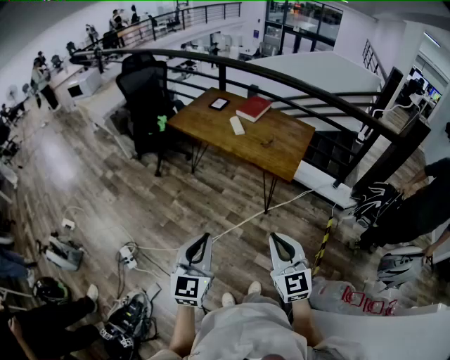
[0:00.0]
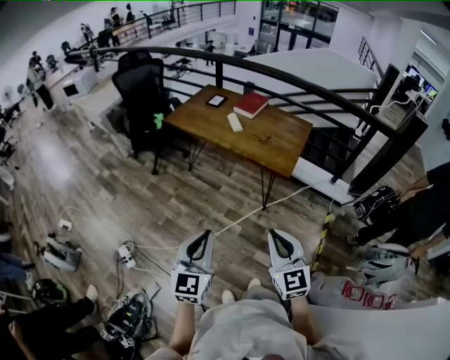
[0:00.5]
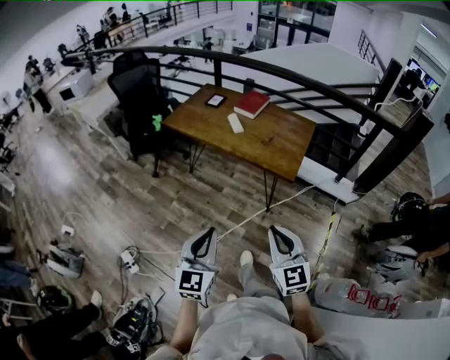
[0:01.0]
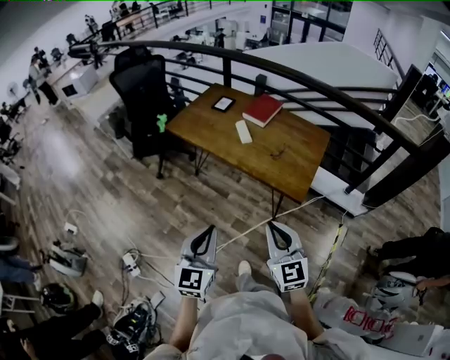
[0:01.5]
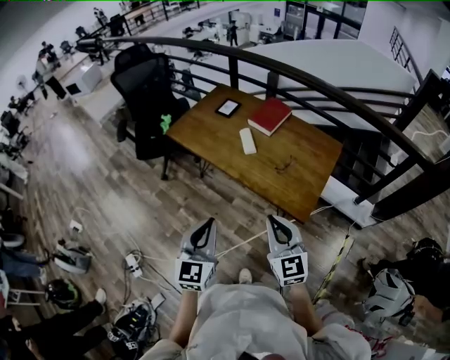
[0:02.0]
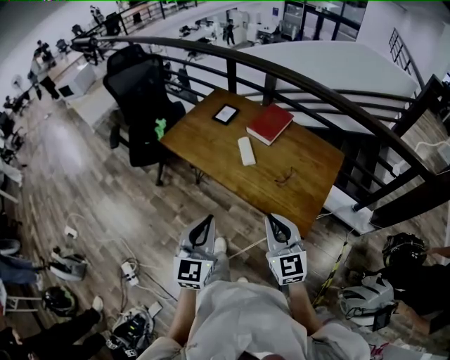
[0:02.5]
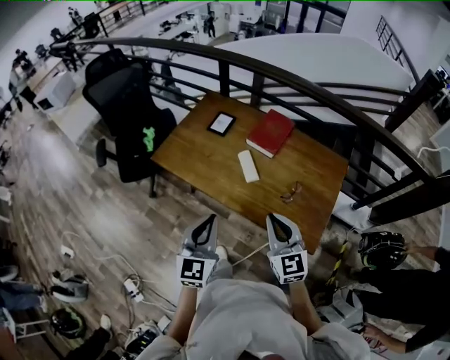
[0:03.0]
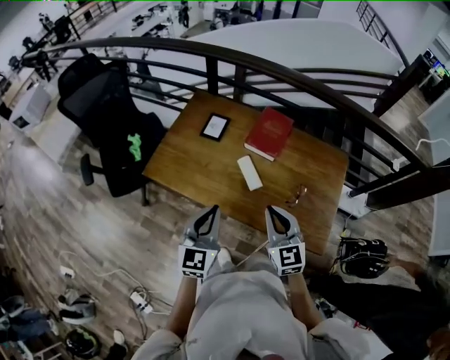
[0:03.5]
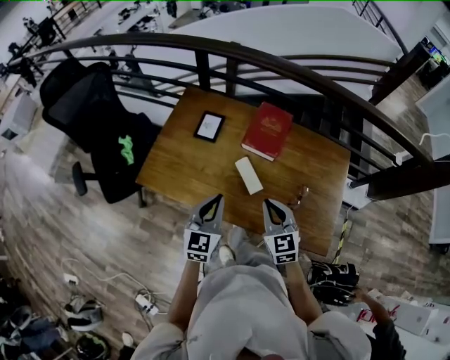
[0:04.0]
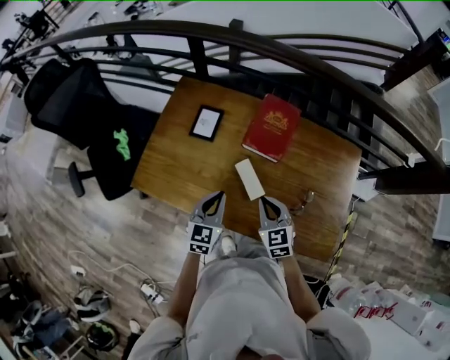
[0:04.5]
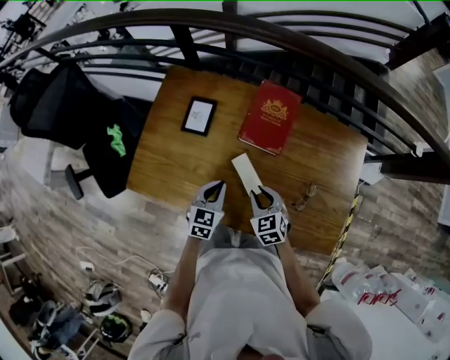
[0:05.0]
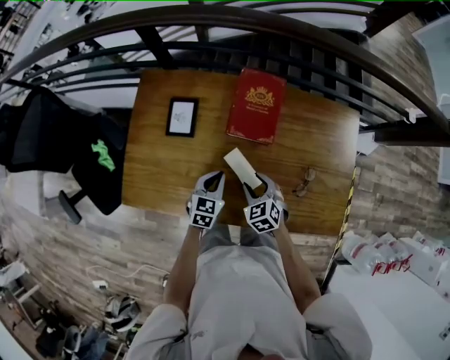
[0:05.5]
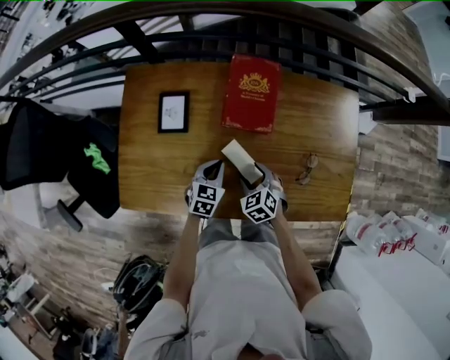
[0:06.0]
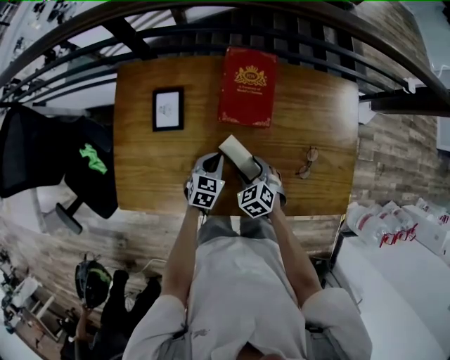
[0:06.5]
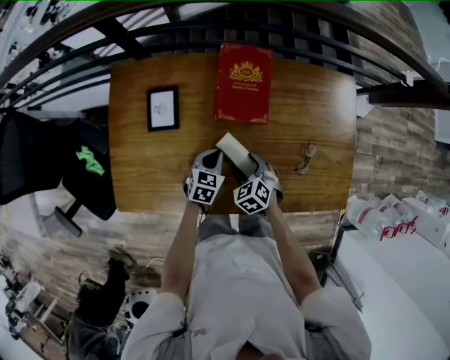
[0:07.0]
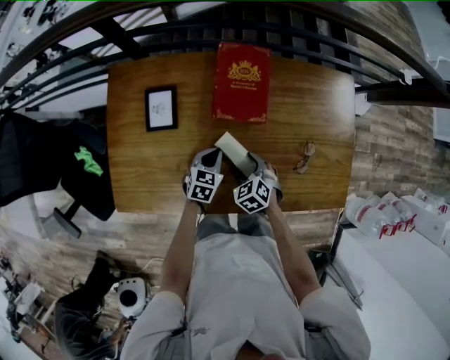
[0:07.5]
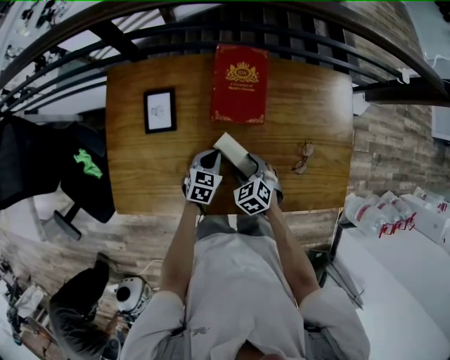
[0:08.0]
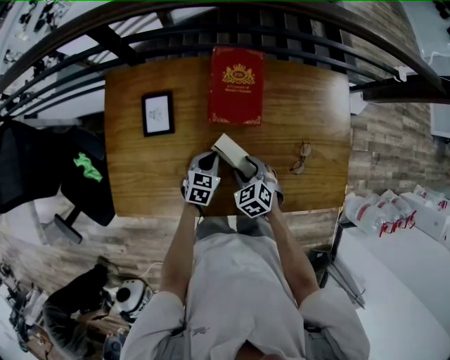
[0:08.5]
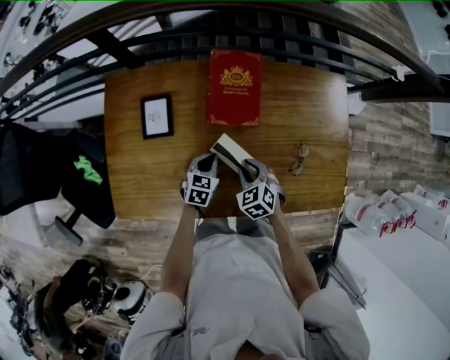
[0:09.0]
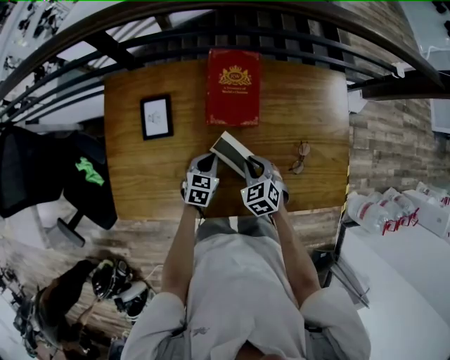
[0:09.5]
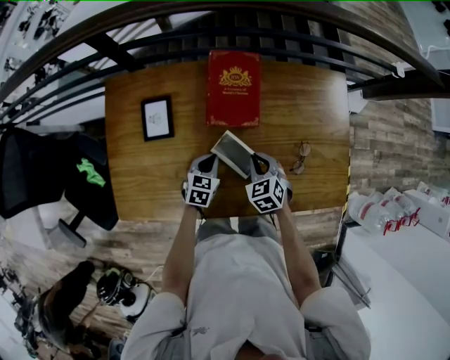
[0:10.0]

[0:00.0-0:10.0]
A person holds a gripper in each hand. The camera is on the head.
0:00.0 to 0:02.0: Both grippers travel together forward, about 35 cm.
0:02.0 to 0:04.0: The two grippers go about 40 cm forward. The right gripper changes its angle by approximately 20 degrees; the left gripper changes its angle by roughly 20 degrees.
0:04.0 to 0:06.0: The grippers both shift downward and forward by about 25 cm. The right gripper angles its fingers downward, by some 30 degrees, and opens. Meanwhile the left gripper turns by approximately 40 degrees.
0:06.0 to 0:08.0: The grippers stay close to where they were, moving slightly.
0:08.0 to 0:10.0: The right gripper changes place by some 5 cm, and closes.

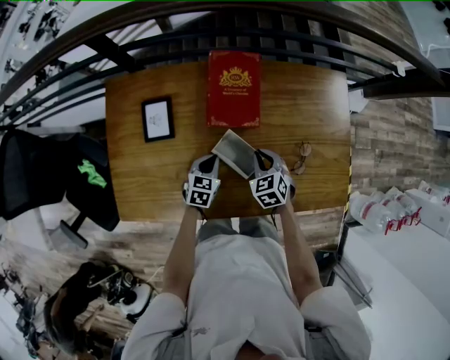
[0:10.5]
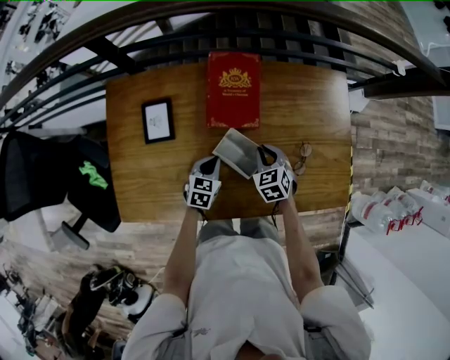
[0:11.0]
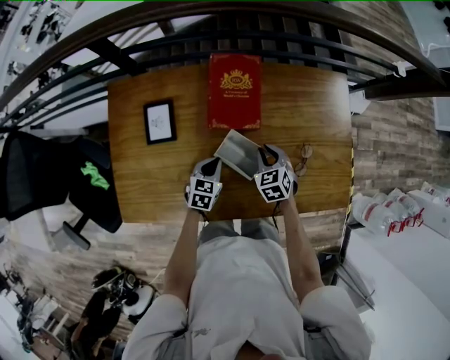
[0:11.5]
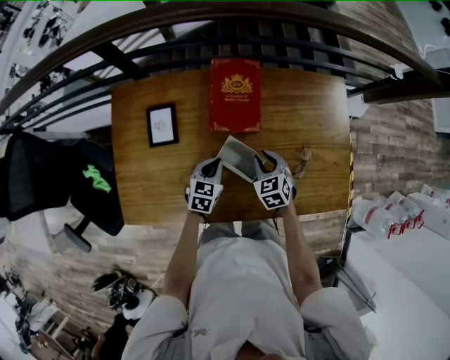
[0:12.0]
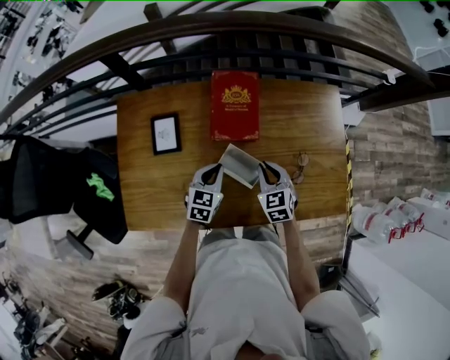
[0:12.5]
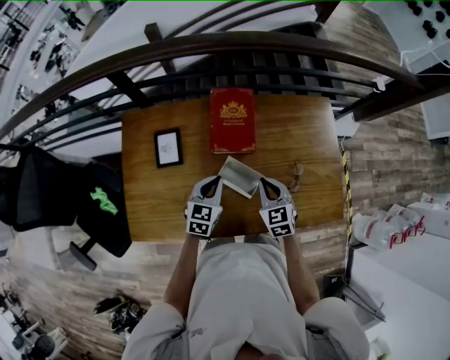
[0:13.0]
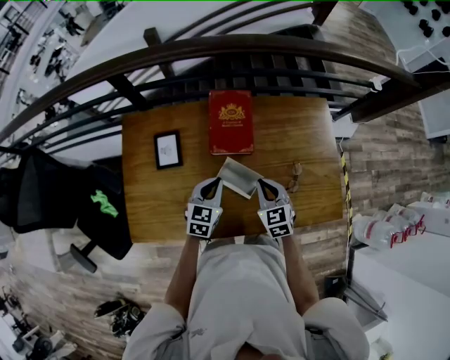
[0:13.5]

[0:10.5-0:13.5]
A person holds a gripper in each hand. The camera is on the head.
0:10.5 to 0:12.0: There are only small adjustments of the grippers.
0:12.0 to 0:13.5: Both grippers travel together upward, about 10 cm.

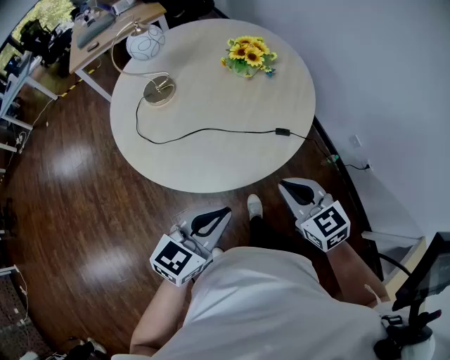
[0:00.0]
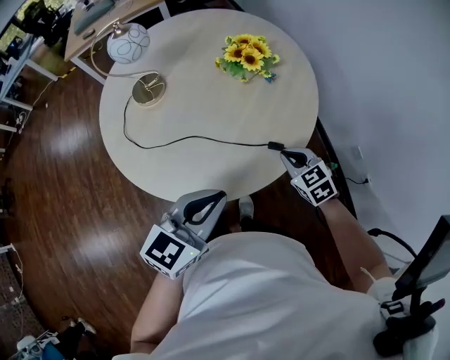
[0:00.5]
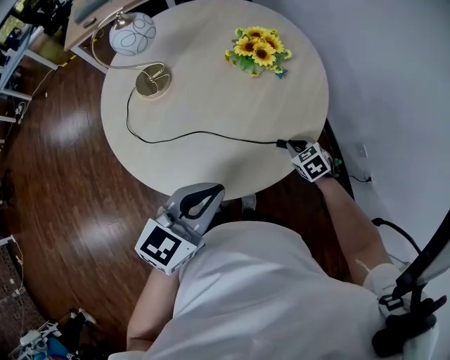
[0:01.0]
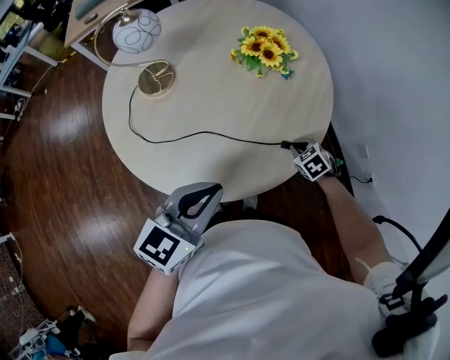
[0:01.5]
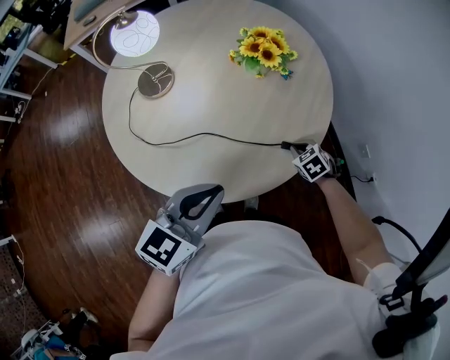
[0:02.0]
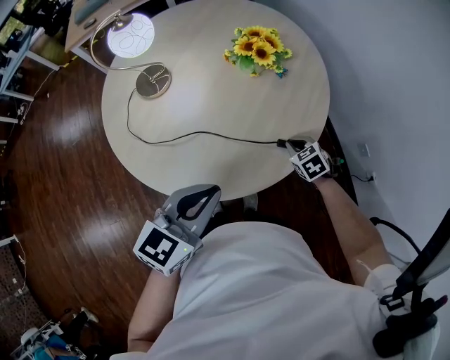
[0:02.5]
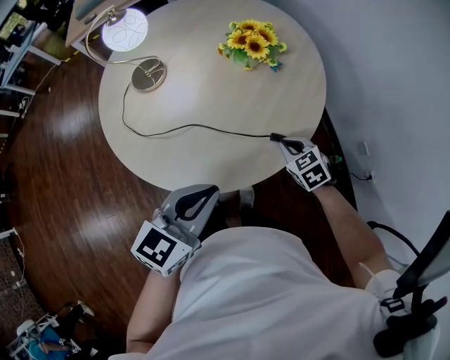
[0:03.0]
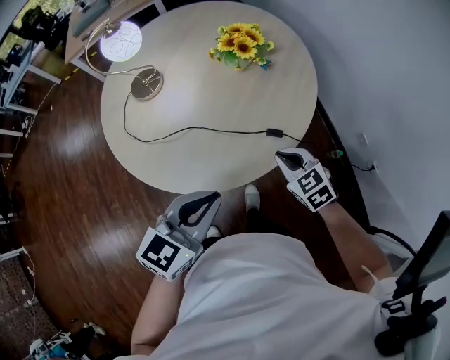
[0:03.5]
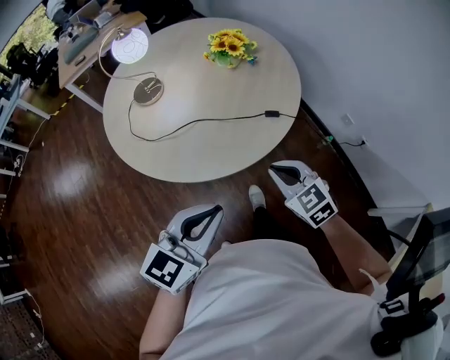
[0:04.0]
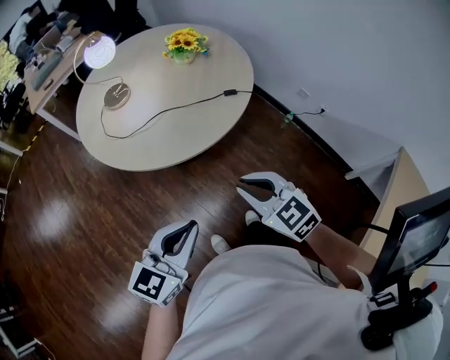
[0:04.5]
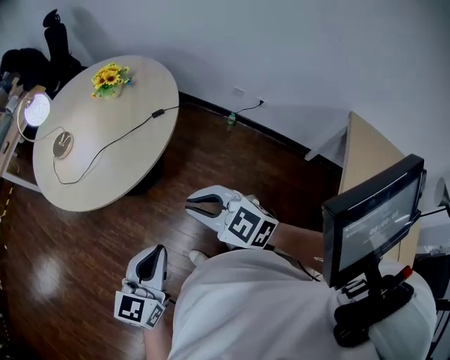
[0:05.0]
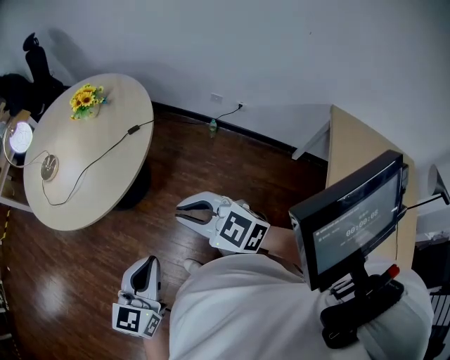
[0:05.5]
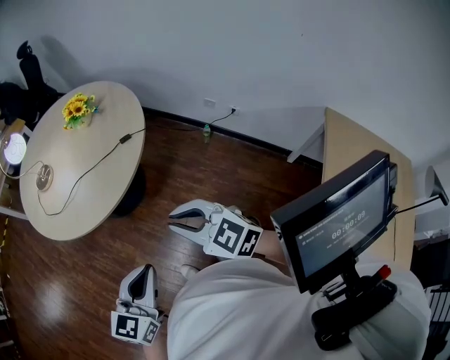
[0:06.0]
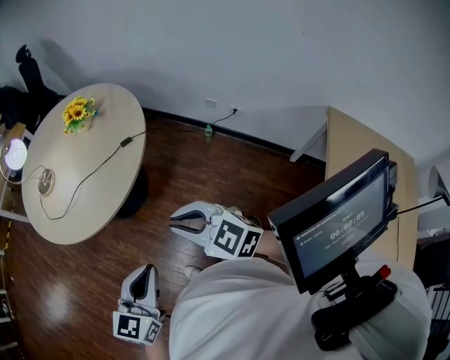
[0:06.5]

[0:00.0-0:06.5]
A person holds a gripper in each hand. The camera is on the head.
0:00.0 to 0:02.0: The left gripper goes roughly 15 cm forward. Meanwhile the right gripper heads downward and forward, covering about 35 cm, and tilts its fingers approximately 40 degrees downward.
0:02.0 to 0:04.5: The right gripper heads backward, upward and to the left, covering approximately 50 cm, and points its fingers approximately 40 degrees further upward, while the left gripper travels backward by roughly 35 cm.
0:04.5 to 0:06.5: The right gripper is displaced to the right and backward by about 15 cm. Meanwhile the left gripper shifts roughly 15 cm to the right.

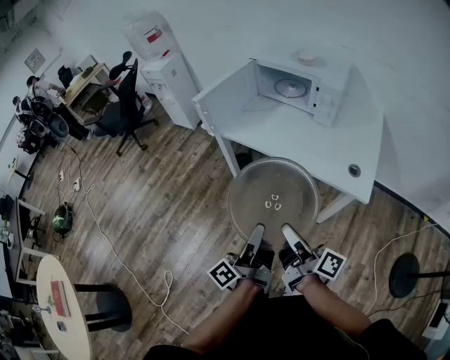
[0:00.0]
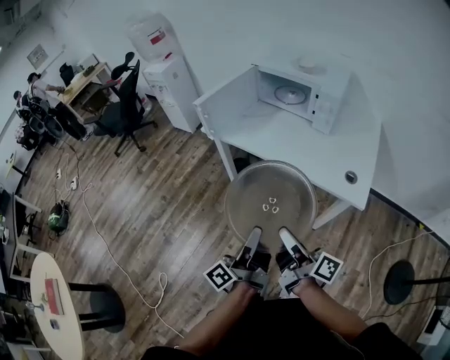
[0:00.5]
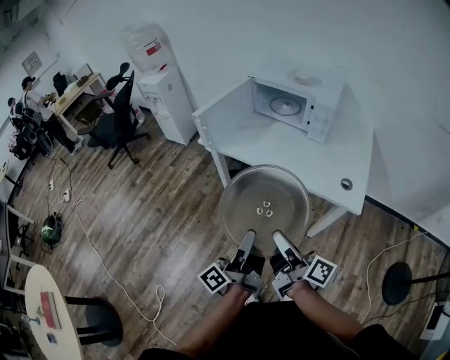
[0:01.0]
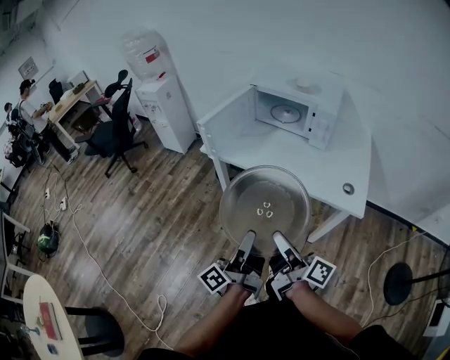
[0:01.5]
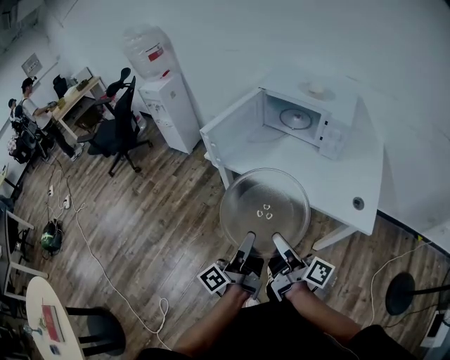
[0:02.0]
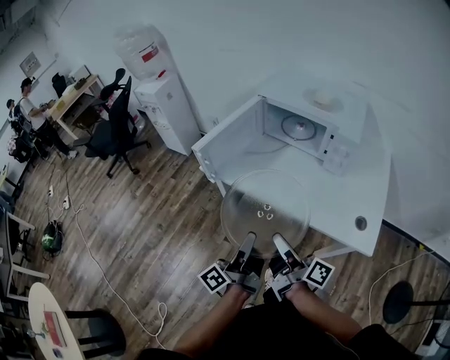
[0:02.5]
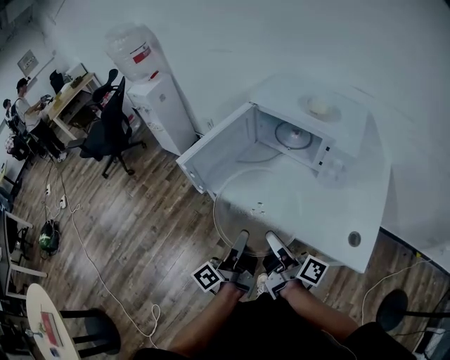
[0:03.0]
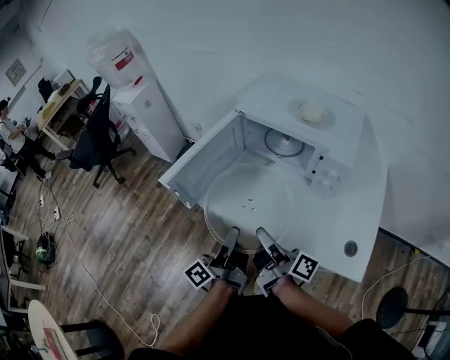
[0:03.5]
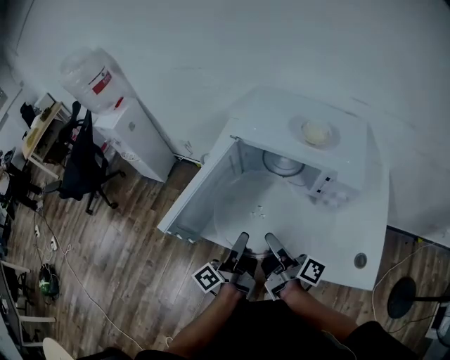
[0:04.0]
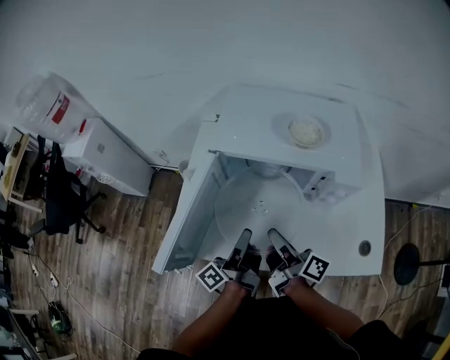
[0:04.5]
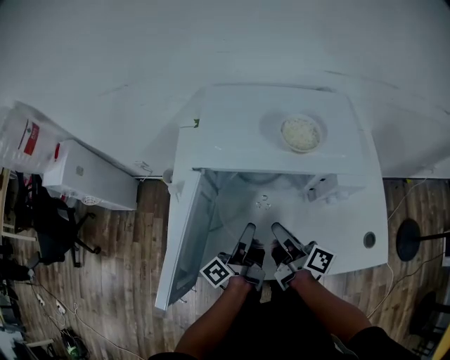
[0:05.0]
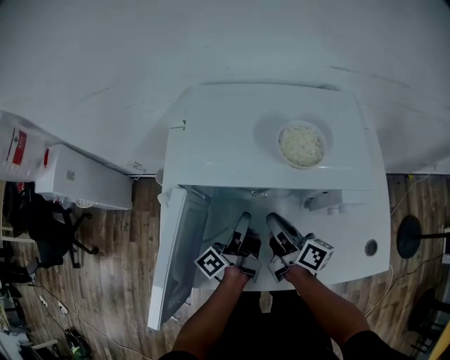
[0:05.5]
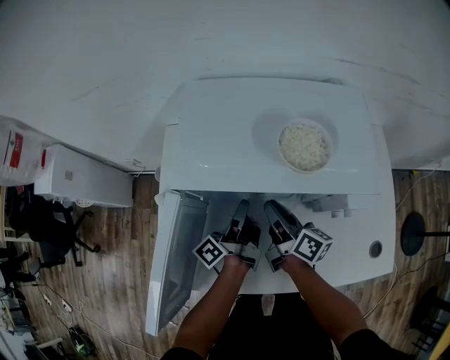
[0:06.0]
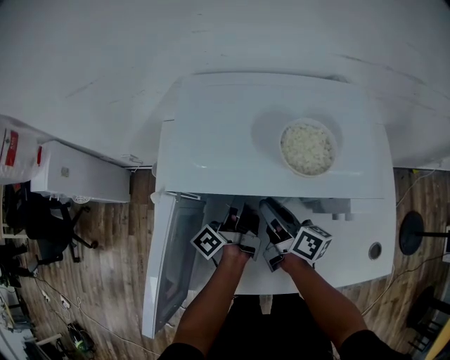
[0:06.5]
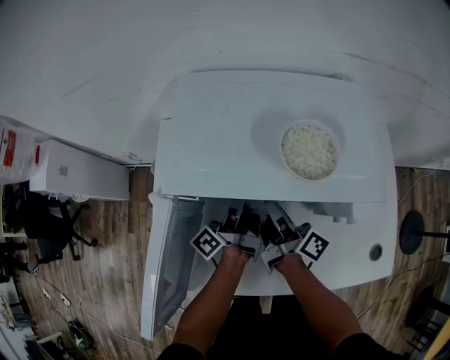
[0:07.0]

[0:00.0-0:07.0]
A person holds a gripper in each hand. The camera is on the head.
0:00.0 to 0:02.0: The right gripper moves roughly 10 cm.
0:02.0 to 0:03.5: The right gripper changes place by approximately 25 cm.
0:03.5 to 0:05.0: The right gripper moves roughly 25 cm, and rotates about 30 degrees.
0:05.0 to 0:07.0: The right gripper ends up about 15 cm from where it was.
